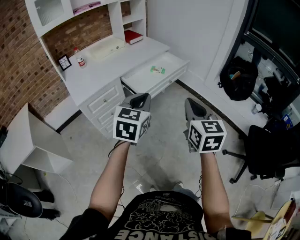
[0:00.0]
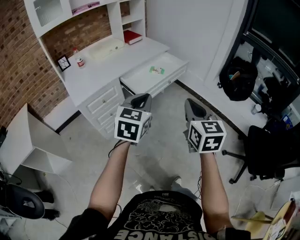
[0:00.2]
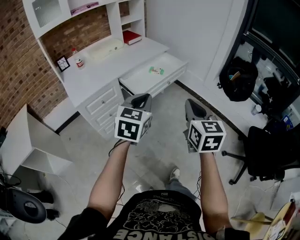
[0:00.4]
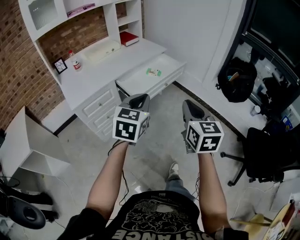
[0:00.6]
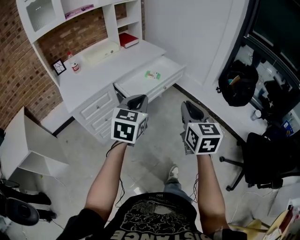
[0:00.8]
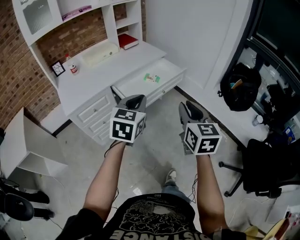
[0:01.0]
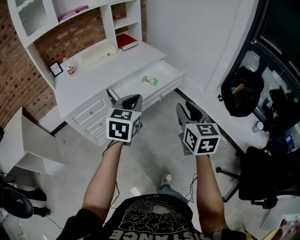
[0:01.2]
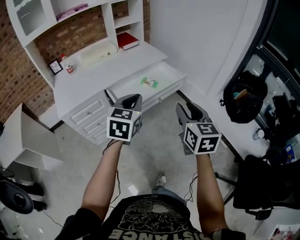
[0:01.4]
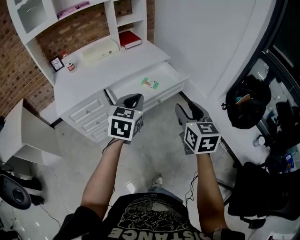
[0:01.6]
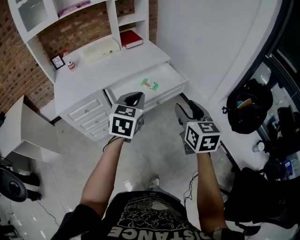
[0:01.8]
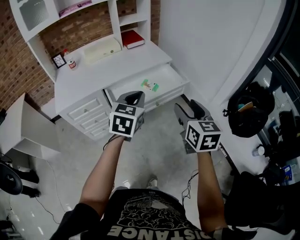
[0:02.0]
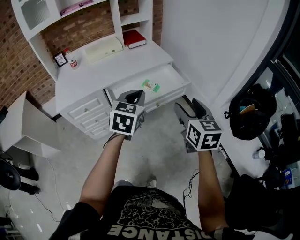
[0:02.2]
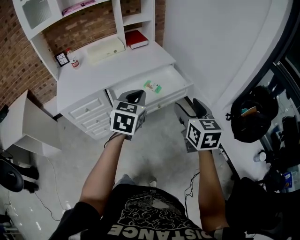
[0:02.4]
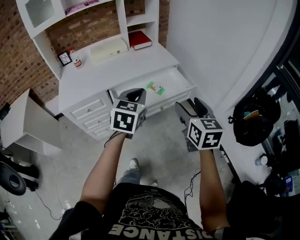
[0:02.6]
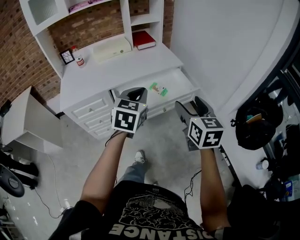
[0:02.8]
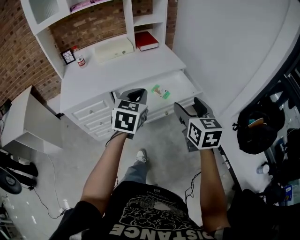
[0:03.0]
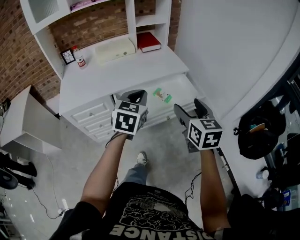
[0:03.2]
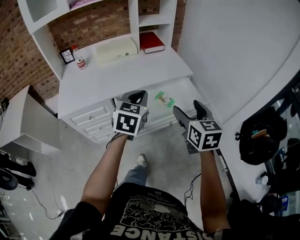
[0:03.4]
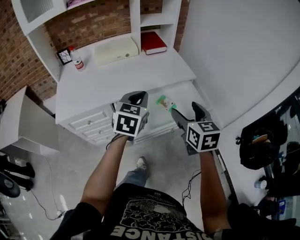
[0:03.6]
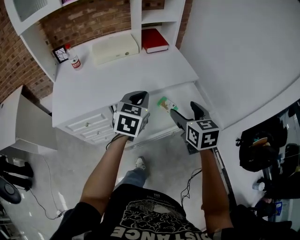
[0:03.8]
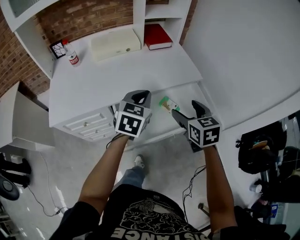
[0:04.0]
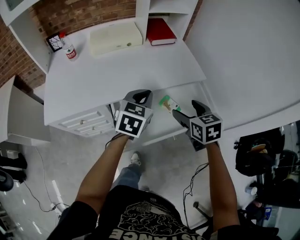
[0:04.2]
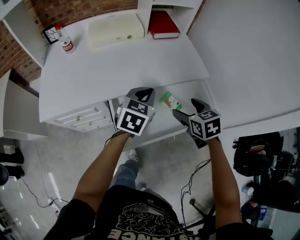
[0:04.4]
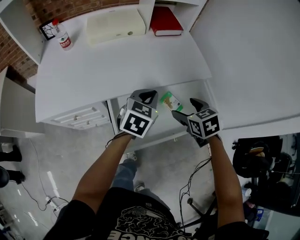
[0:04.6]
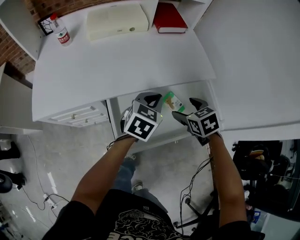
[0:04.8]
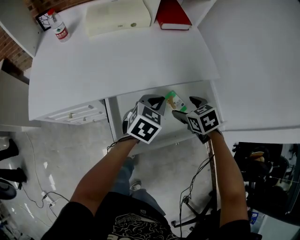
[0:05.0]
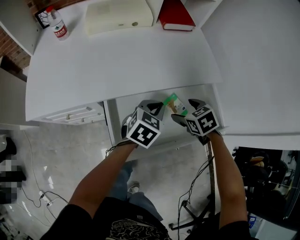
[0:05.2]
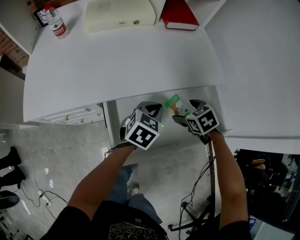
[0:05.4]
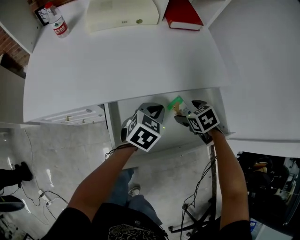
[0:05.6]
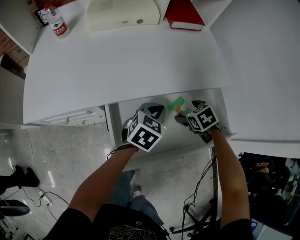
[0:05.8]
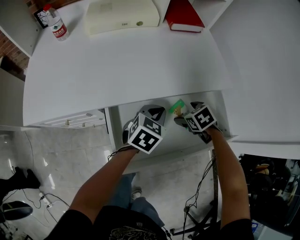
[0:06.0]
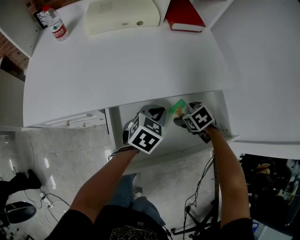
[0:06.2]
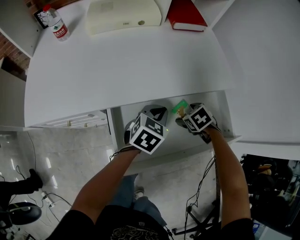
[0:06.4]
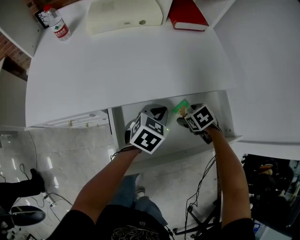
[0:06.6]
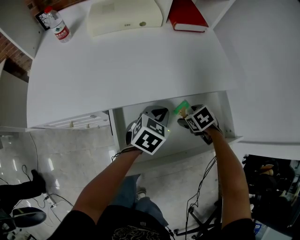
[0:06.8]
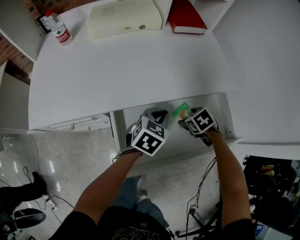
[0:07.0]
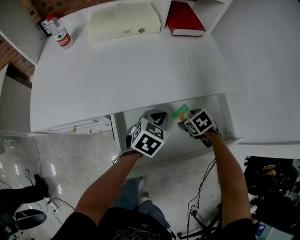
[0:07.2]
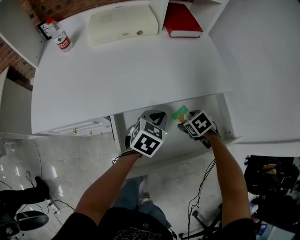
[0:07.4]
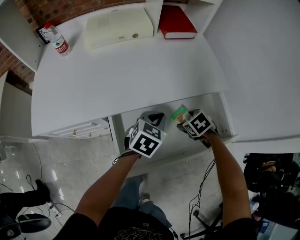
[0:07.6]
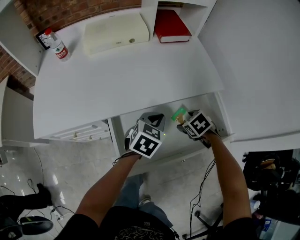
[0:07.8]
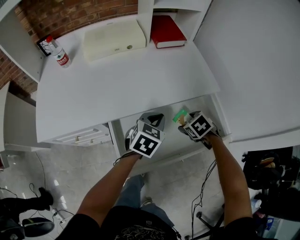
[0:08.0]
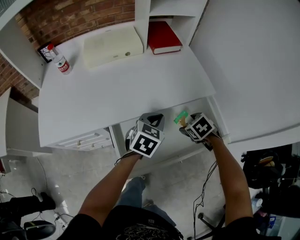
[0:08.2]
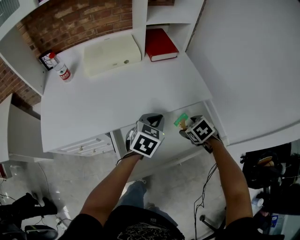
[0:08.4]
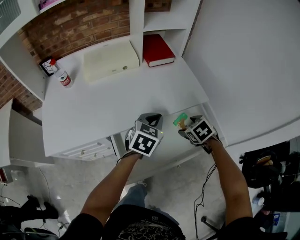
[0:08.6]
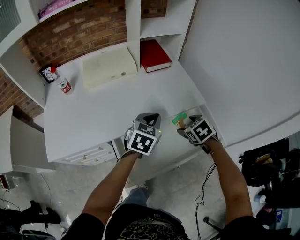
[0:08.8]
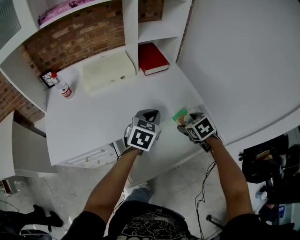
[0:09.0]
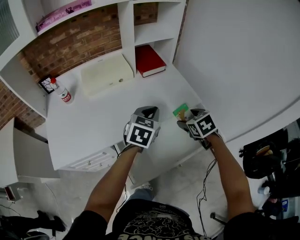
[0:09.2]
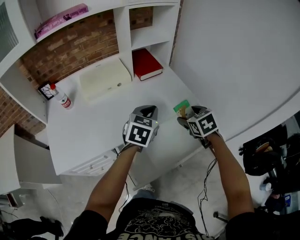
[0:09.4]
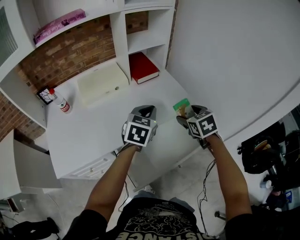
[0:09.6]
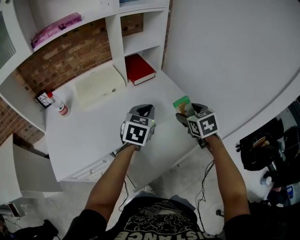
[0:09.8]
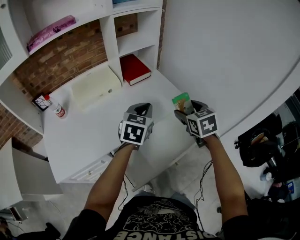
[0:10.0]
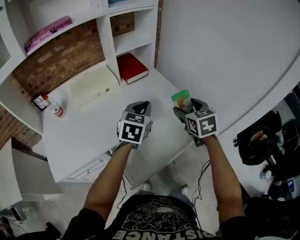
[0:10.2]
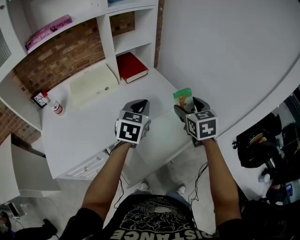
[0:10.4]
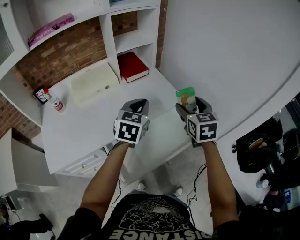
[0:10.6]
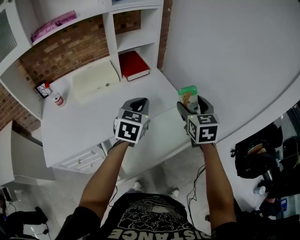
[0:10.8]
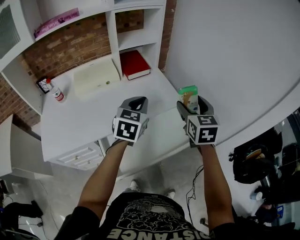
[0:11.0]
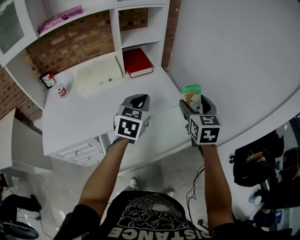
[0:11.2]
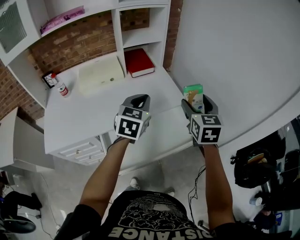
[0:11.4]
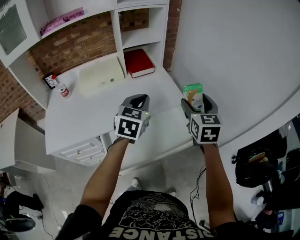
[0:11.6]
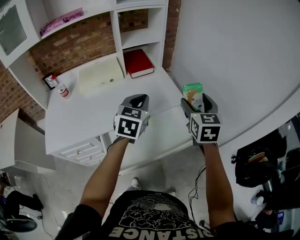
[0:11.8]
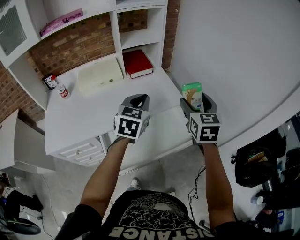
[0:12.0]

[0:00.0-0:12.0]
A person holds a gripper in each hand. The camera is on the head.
0:00.0 to 0:01.6: The grippers both shift forward and to the right by roughly 25 cm. The right gripper opens.
0:01.6 to 0:03.0: Both grippers move forward, some 10 cm.
0:03.0 to 0:04.4: Both grippers travel together forward and downward, approximately 30 cm. The right gripper swivels roughly 30 degrees.
0:04.4 to 0:06.0: The right gripper shifts approximately 25 cm downward and forward, and changes its angle by approximately 30 degrees. The left gripper is displaced downward by about 15 cm.
0:06.0 to 0:07.6: The grippers make only small movements.
0:07.6 to 0:09.0: Both grippers move upward, some 20 cm. The right gripper rotates some 20 degrees.
0:09.0 to 0:10.4: The left gripper goes about 10 cm upward. The right gripper is displaced upward by approximately 15 cm, and tips its fingers upward by approximately 30 degrees.
0:10.4 to 0:12.0: The right gripper moves to the right, some 5 cm.

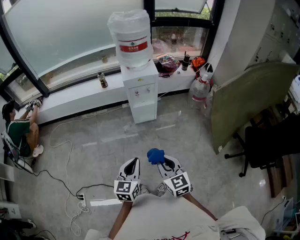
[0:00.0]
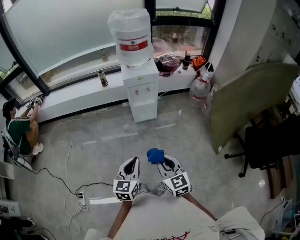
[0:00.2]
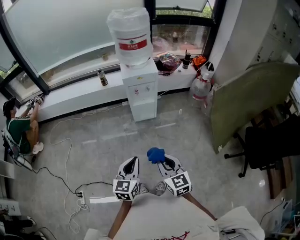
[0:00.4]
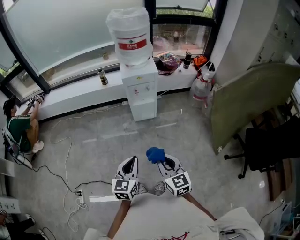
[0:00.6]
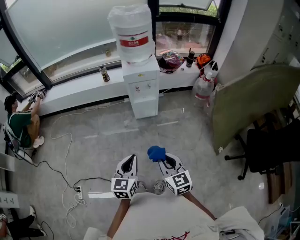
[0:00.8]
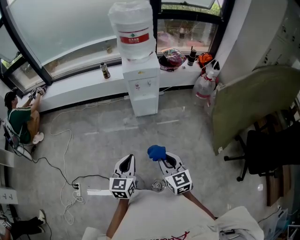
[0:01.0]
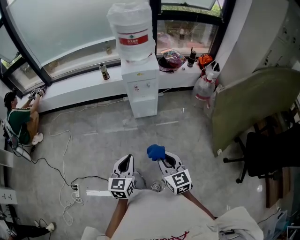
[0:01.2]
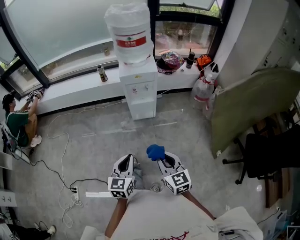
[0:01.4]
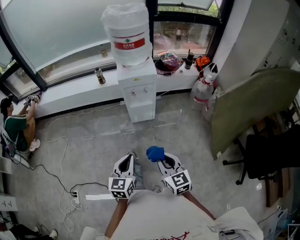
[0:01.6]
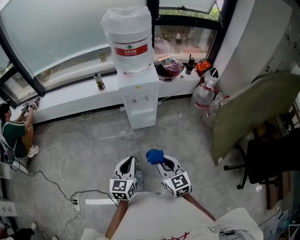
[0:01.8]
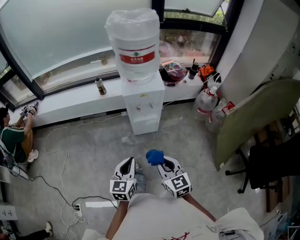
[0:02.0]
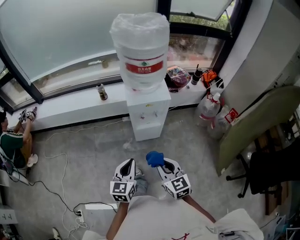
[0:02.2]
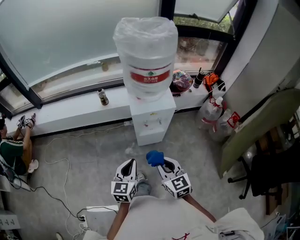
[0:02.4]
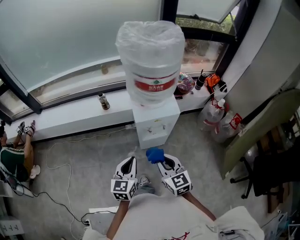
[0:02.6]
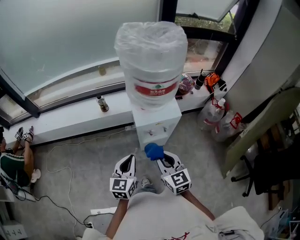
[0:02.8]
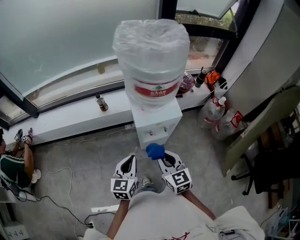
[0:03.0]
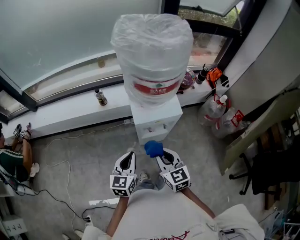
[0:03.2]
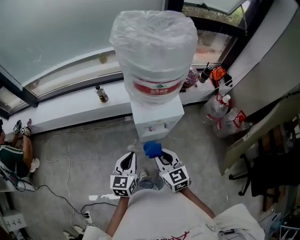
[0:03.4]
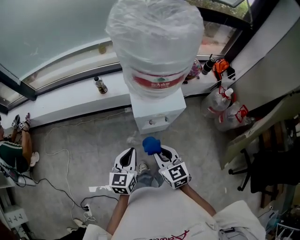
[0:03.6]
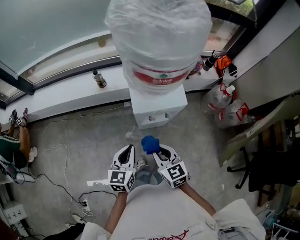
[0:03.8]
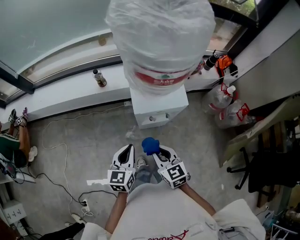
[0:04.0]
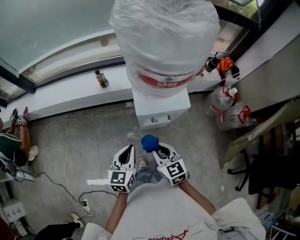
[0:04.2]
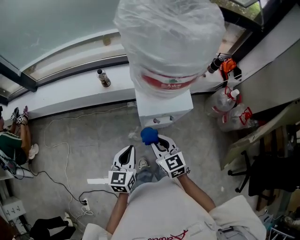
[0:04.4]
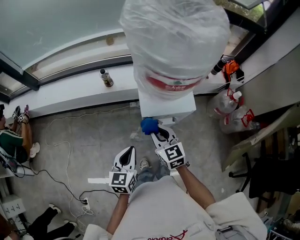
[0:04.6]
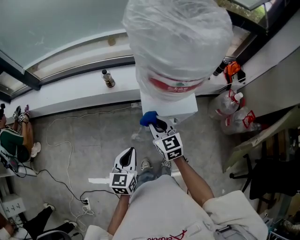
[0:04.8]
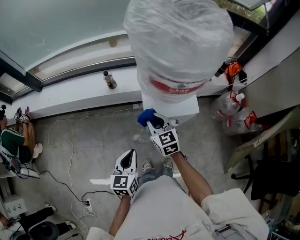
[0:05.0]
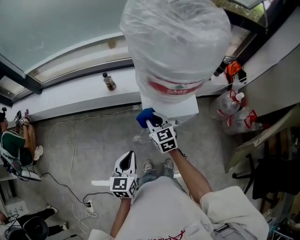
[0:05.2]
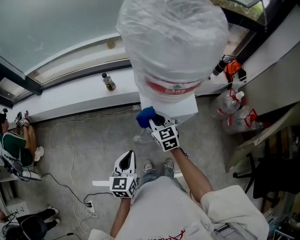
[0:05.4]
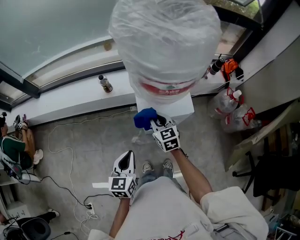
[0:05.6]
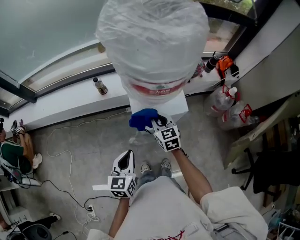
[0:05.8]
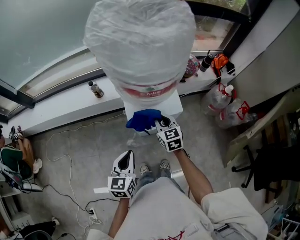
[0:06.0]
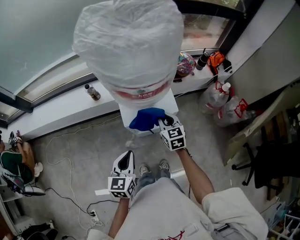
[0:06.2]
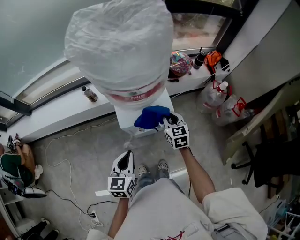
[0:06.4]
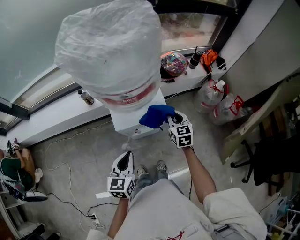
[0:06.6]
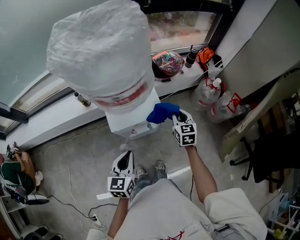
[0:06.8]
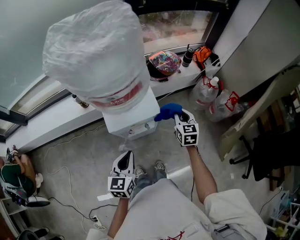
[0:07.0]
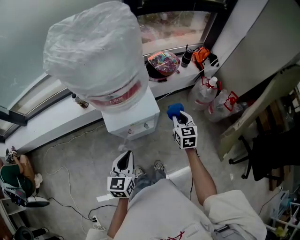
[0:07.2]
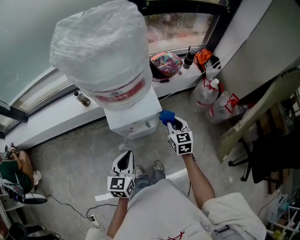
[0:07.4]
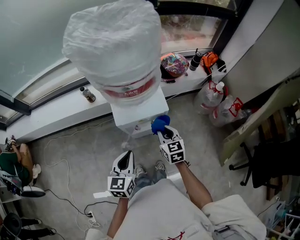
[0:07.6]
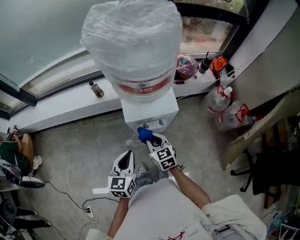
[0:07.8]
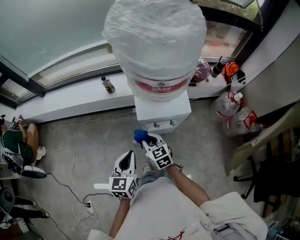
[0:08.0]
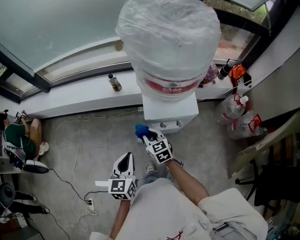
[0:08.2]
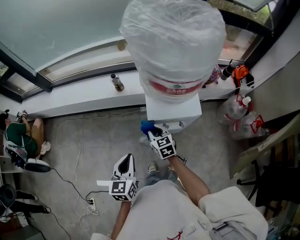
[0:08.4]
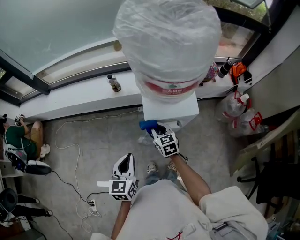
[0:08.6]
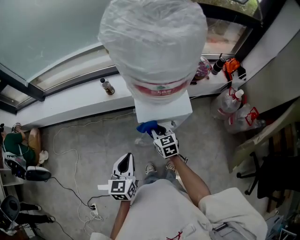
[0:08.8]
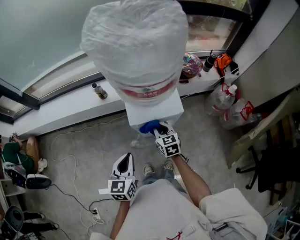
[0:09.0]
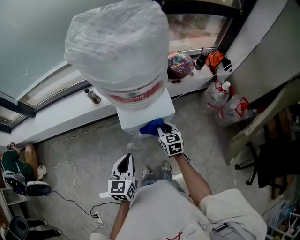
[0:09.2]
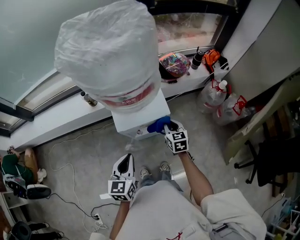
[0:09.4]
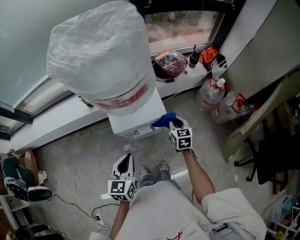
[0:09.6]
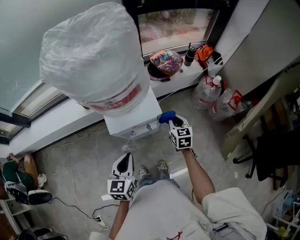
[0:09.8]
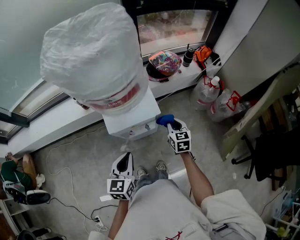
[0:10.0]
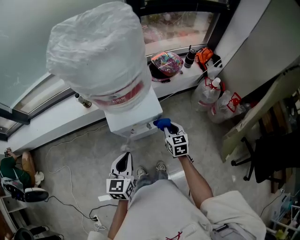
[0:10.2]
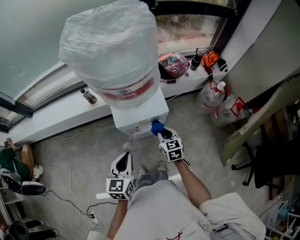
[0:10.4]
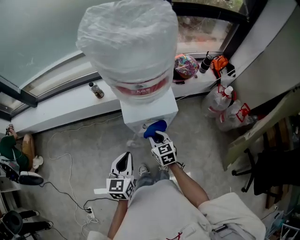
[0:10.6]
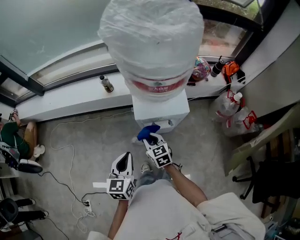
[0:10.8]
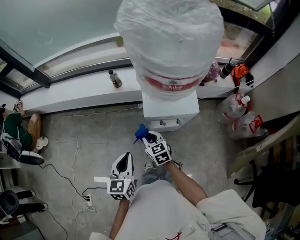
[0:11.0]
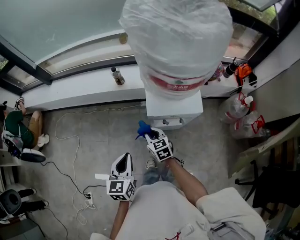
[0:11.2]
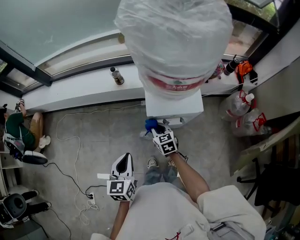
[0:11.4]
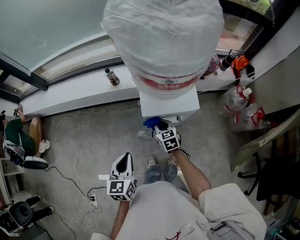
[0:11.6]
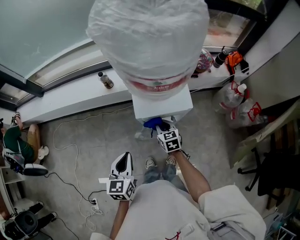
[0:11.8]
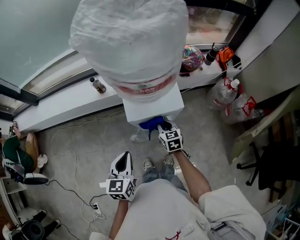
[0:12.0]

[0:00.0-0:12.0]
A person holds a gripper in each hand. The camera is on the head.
0:00.0 to 0:01.6: The left gripper goes about 10 cm forward. The right gripper moves forward and to the right, some 10 cm.
0:01.6 to 0:03.0: Both grippers move forward, some 40 cm.
0:03.0 to 0:04.4: The right gripper moves forward and downward, approximately 10 cm.
0:04.4 to 0:06.0: The right gripper shifts roughly 15 cm forward and to the right.
0:06.0 to 0:07.6: The right gripper travels to the right and backward by some 10 cm; the left gripper goes some 5 cm to the right.
0:07.6 to 0:09.0: The left gripper goes some 5 cm to the left. The right gripper shifts approximately 10 cm to the left and forward.
0:09.0 to 0:10.4: The right gripper is displaced to the right by roughly 10 cm; the left gripper heads to the right, covering approximately 5 cm.
0:10.4 to 0:12.0: The left gripper is displaced to the left by about 5 cm; the right gripper goes to the left and returns, roughly 25 cm each way.
